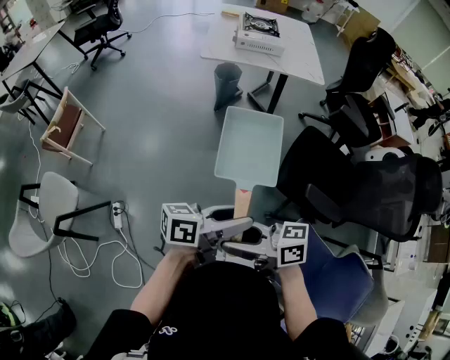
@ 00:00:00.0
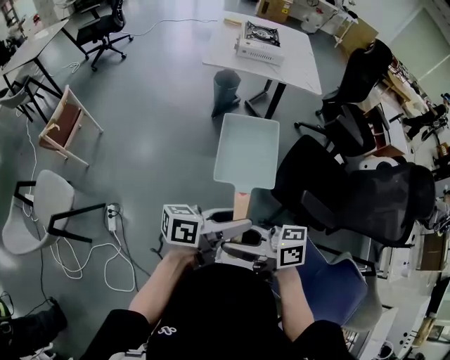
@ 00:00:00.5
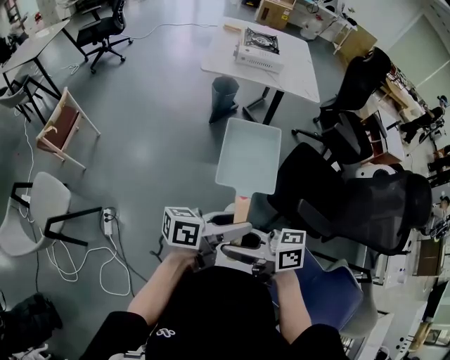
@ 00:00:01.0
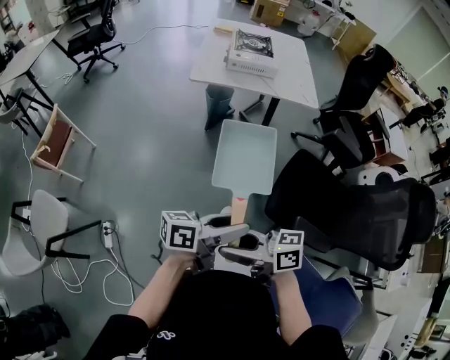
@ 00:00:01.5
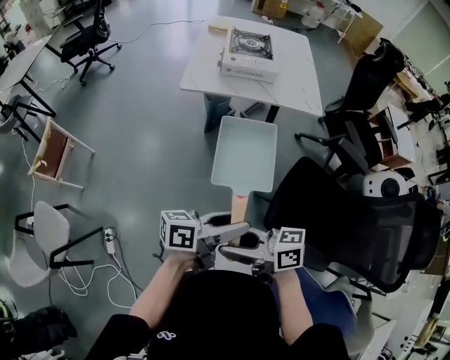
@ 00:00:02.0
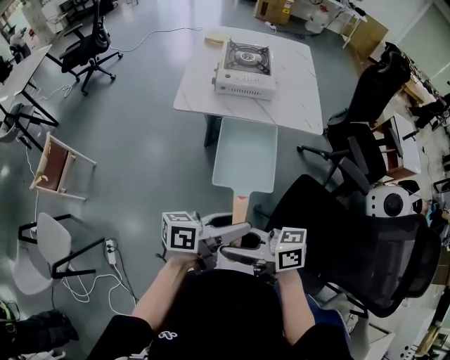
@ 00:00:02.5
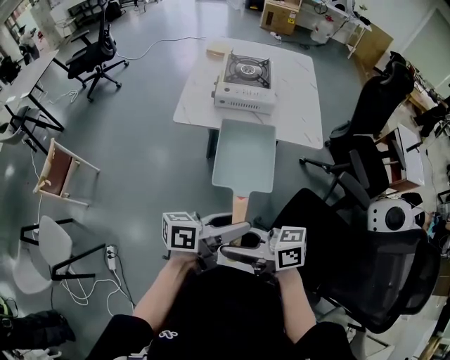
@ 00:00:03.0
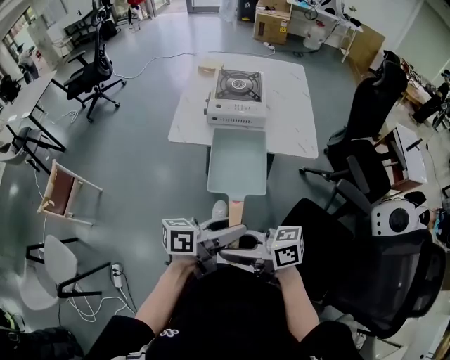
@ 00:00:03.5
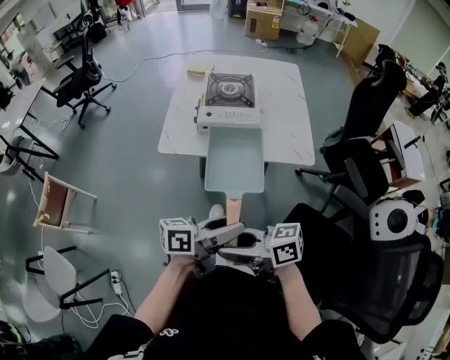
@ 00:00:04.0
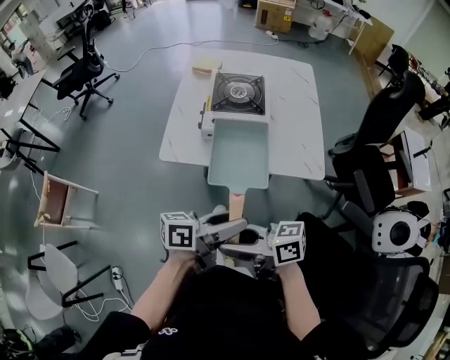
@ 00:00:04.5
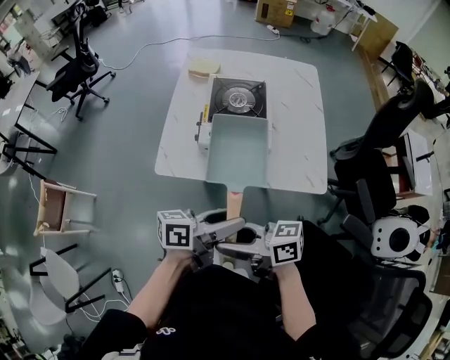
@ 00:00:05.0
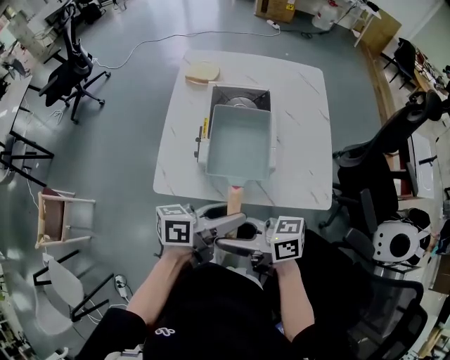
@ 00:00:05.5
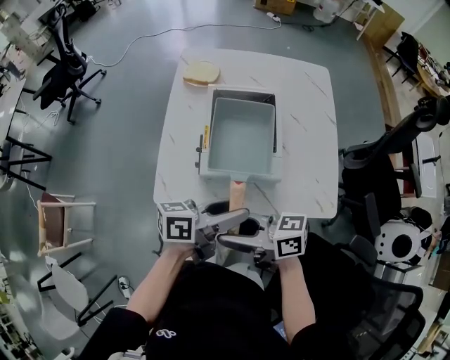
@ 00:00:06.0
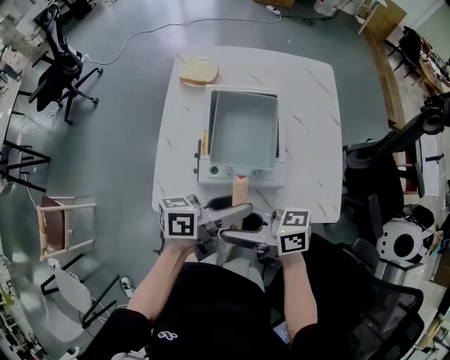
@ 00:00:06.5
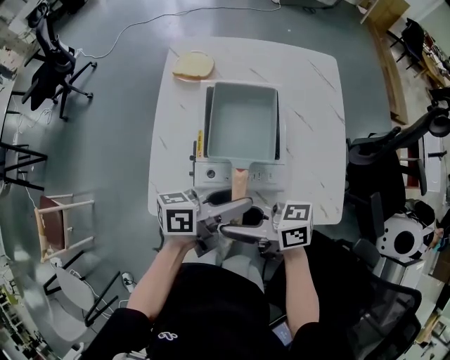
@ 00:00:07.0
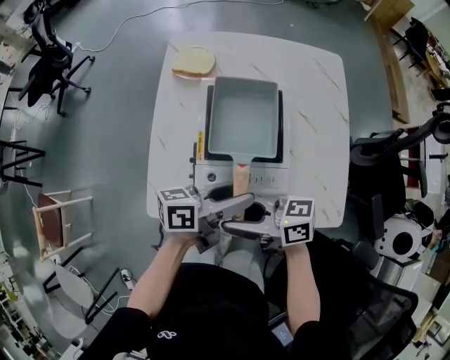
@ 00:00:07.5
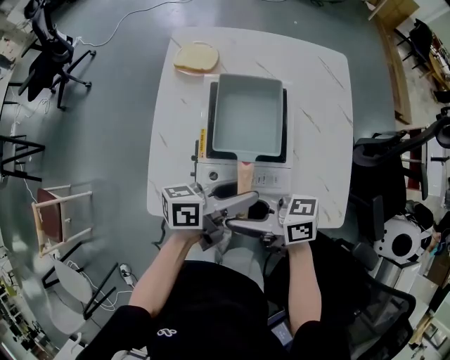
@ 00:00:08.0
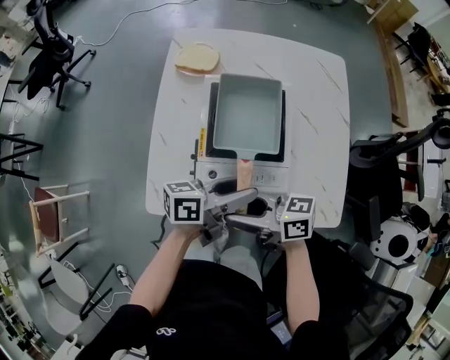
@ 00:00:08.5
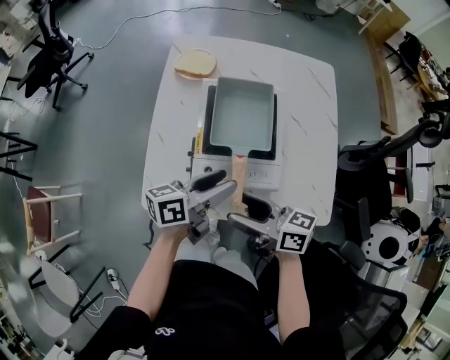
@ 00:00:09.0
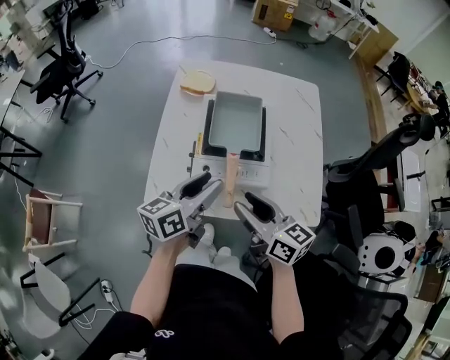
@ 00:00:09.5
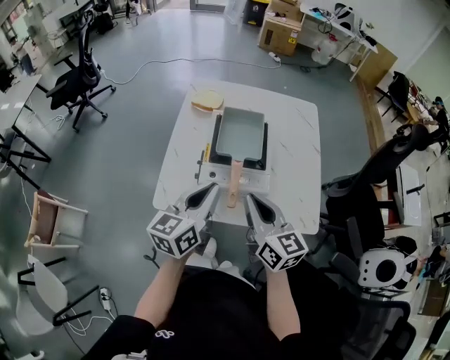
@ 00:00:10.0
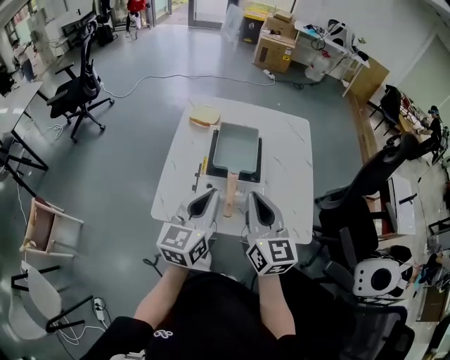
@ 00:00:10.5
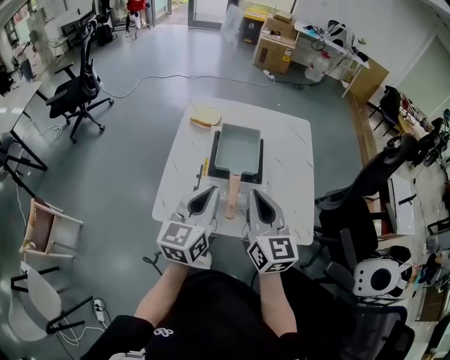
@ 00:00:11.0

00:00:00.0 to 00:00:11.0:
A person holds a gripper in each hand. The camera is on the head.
00:00:00.0 to 00:00:02.0: The left gripper moves approximately 20 cm, while the right gripper ends up some 20 cm from where it was.
00:00:02.0 to 00:00:03.5: The right gripper changes place by roughly 20 cm; the left gripper moves approximately 20 cm.
00:00:03.5 to 00:00:05.5: The left gripper moves some 30 cm. The right gripper moves roughly 30 cm.
00:00:05.5 to 00:00:07.5: The left gripper ends up approximately 15 cm from where it was; the right gripper ends up approximately 15 cm from where it was.
00:00:07.5 to 00:00:09.0: There are only small adjustments of the grippers.
00:00:09.0 to 00:00:11.0: The grippers both shift upward by some 15 cm. The left gripper changes its angle by about 50 degrees, and closes, while the right gripper turns by roughly 60 degrees, and closes up.

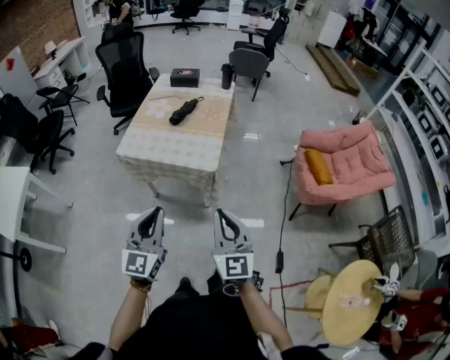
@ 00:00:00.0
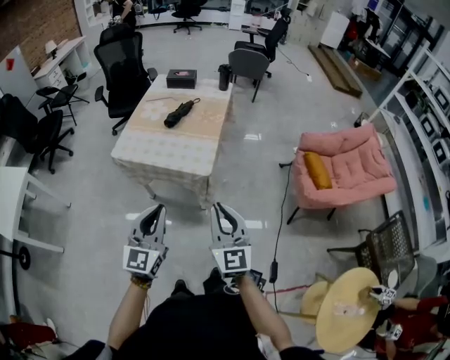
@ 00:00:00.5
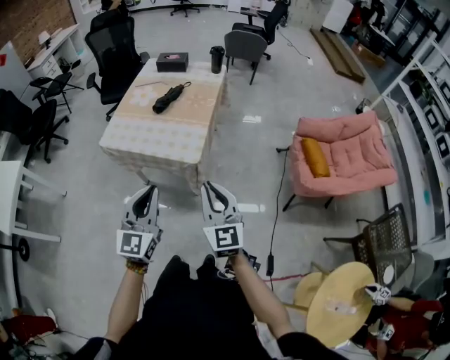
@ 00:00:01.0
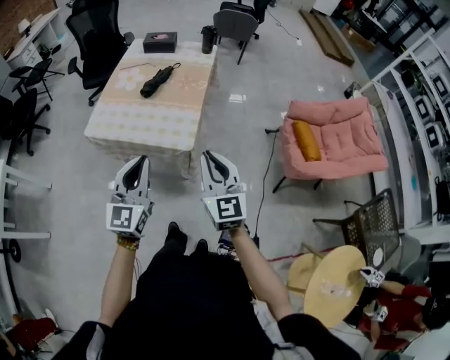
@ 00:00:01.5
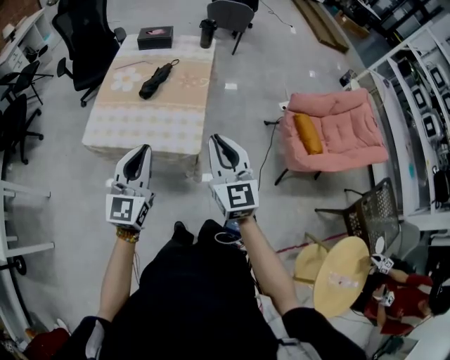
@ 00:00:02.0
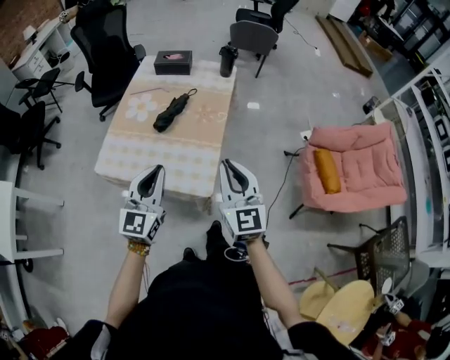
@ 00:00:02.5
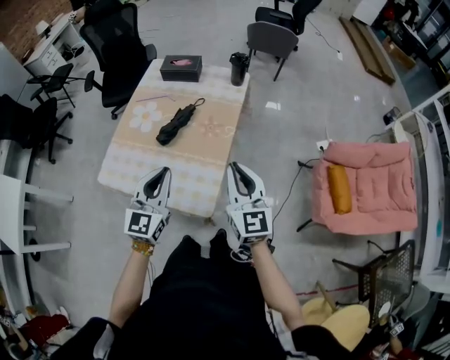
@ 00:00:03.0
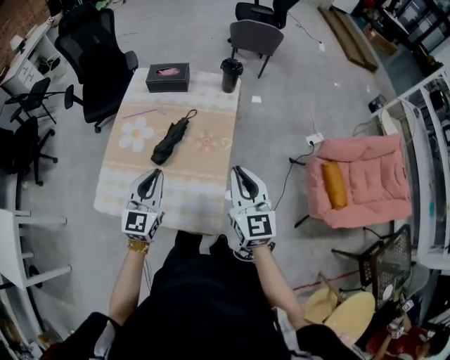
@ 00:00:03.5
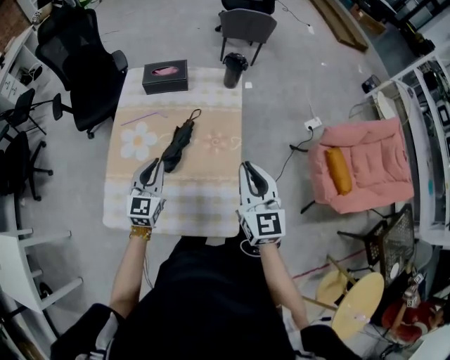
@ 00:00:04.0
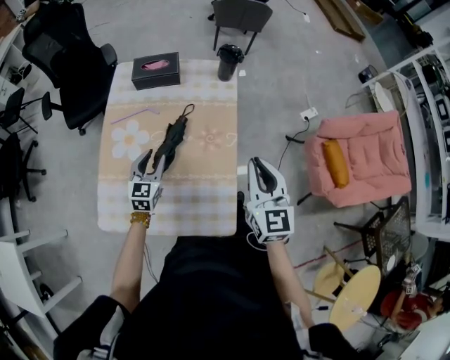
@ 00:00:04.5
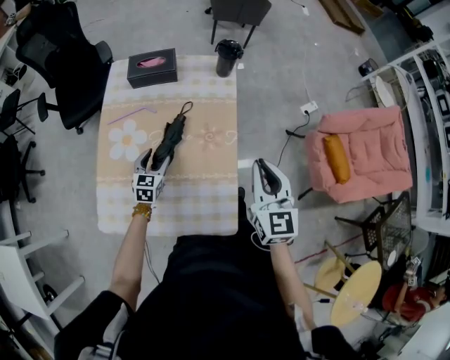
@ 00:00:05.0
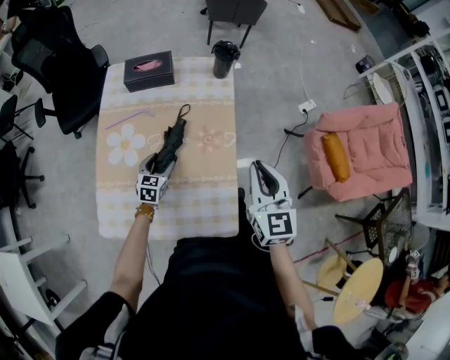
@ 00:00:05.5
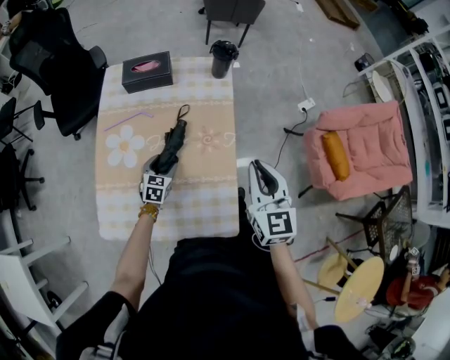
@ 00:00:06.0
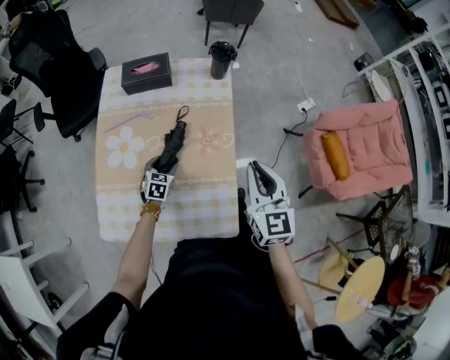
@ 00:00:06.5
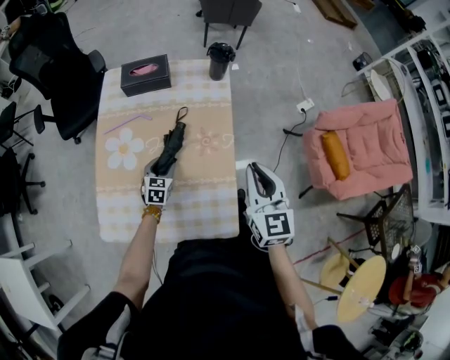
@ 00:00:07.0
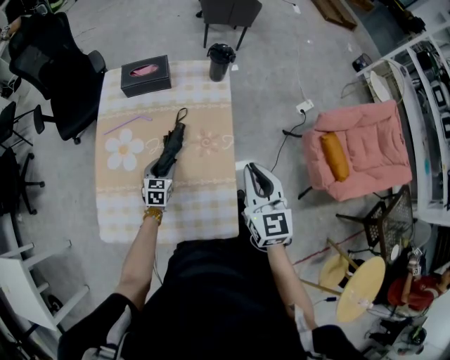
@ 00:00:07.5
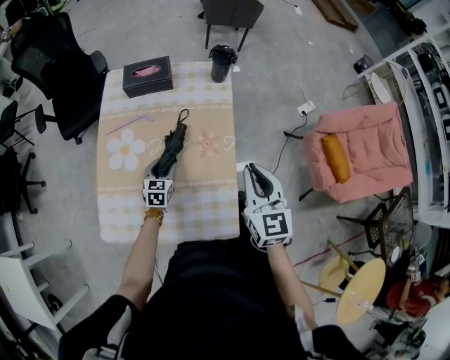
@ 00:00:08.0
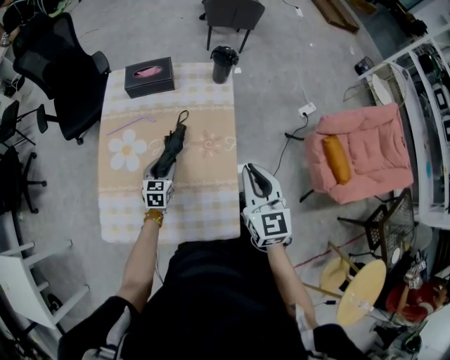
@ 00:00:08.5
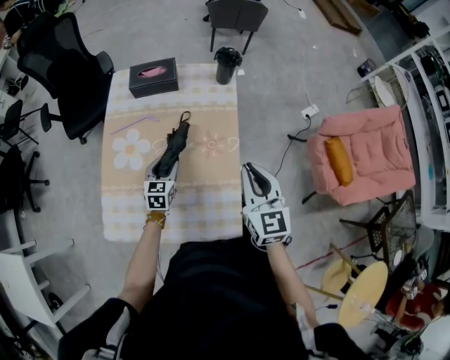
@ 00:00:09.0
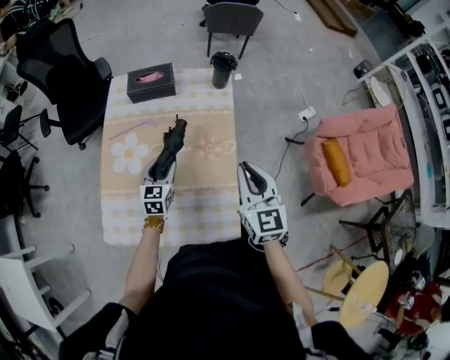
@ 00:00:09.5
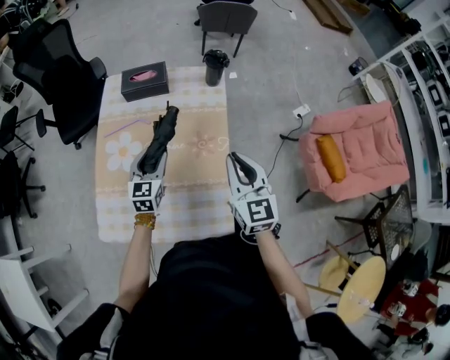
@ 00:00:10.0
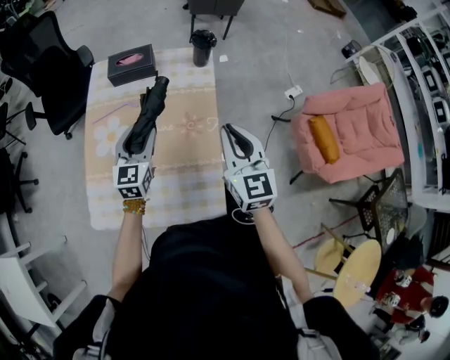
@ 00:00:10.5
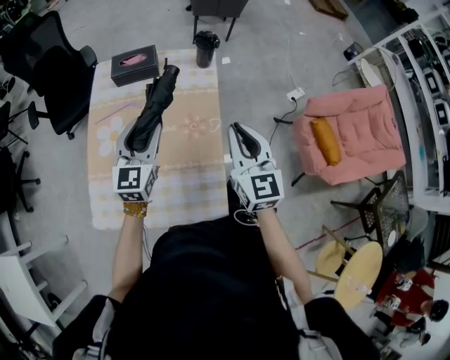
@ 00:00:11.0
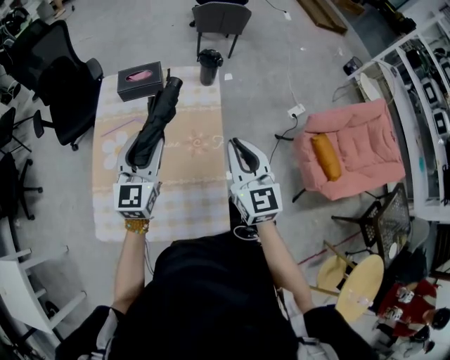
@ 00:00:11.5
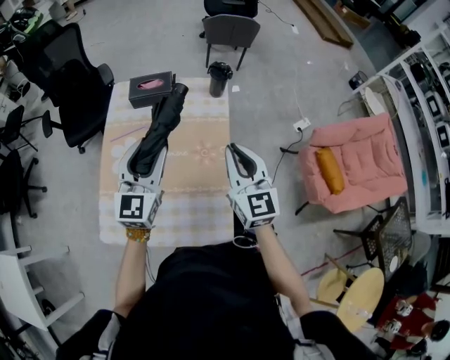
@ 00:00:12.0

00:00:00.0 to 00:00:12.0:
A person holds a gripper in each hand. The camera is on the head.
00:00:00.0 to 00:00:02.0: The grippers both shift forward by roughly 25 cm.
00:00:02.0 to 00:00:04.0: The two grippers go approximately 40 cm forward.
00:00:04.0 to 00:00:06.0: The right gripper shifts by some 5 cm. The left gripper heads downward, covering roughly 20 cm, rotates roughly 30 degrees, and opens up.
00:00:06.0 to 00:00:08.0: The grippers stay close to where they were, moving slightly.
00:00:08.0 to 00:00:10.0: The left gripper travels upward by roughly 15 cm.
00:00:10.0 to 00:00:12.0: The right gripper travels upward by approximately 5 cm. Meanwhile the left gripper is displaced upward by roughly 20 cm.

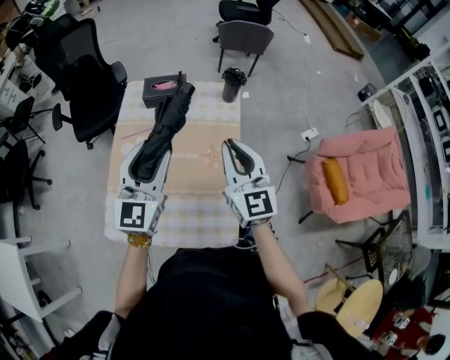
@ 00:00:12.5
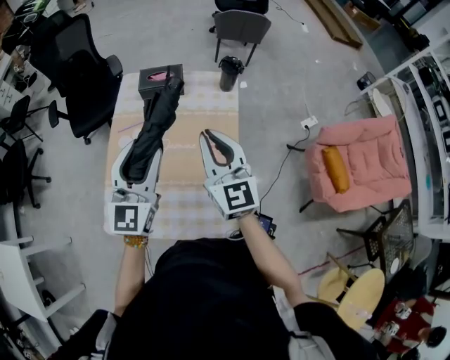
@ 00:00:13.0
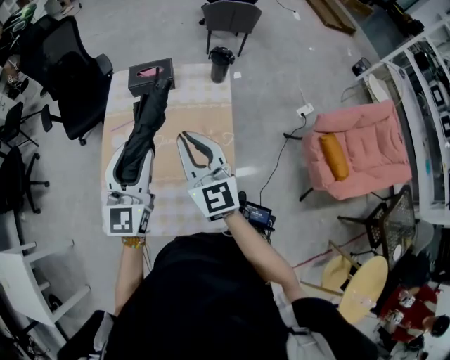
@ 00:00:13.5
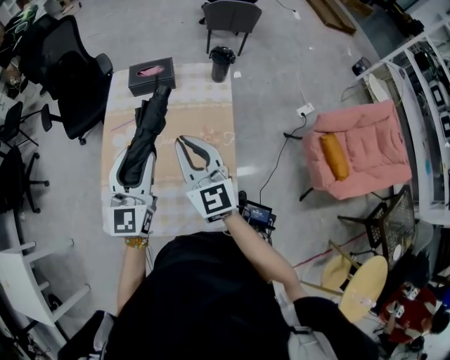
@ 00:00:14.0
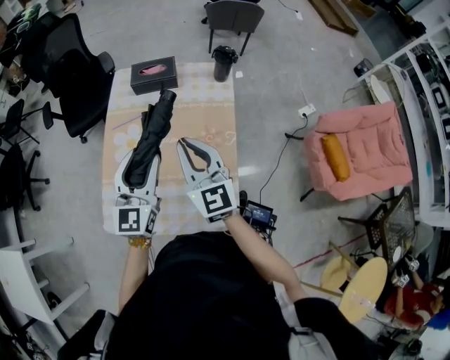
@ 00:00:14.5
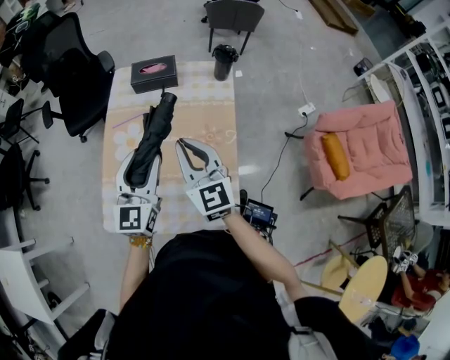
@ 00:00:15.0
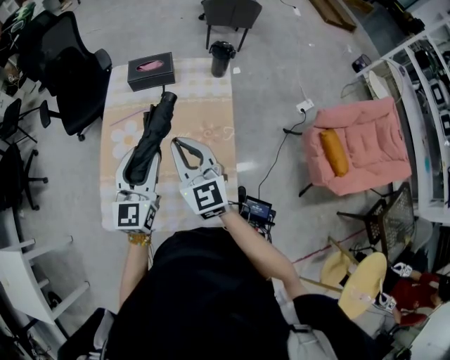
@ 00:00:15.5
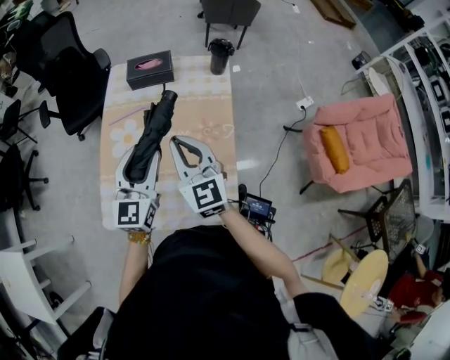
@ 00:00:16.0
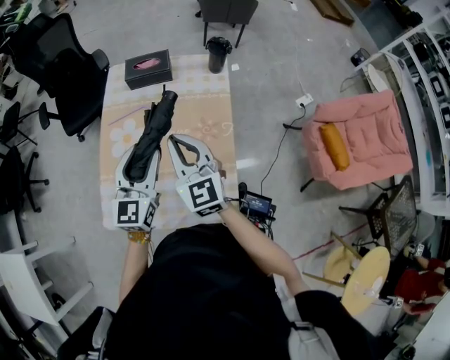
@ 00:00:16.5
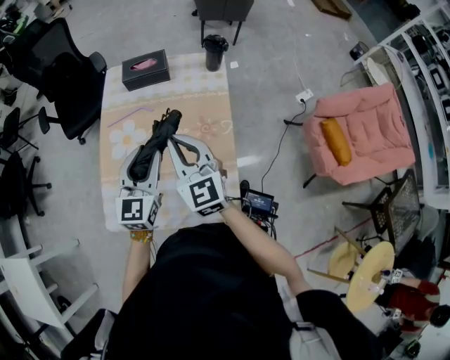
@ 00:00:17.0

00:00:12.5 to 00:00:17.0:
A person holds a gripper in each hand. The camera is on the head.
00:00:12.5 to 00:00:14.5: The right gripper heads to the left, covering approximately 10 cm, while the left gripper moves downward, about 5 cm.
00:00:14.5 to 00:00:17.0: There are only small adjustments of the grippers.
